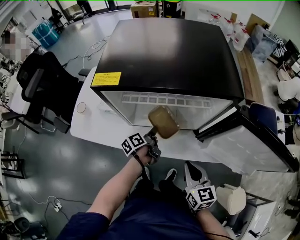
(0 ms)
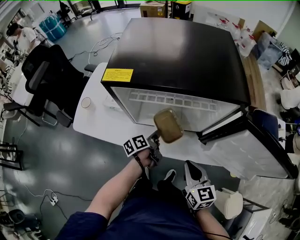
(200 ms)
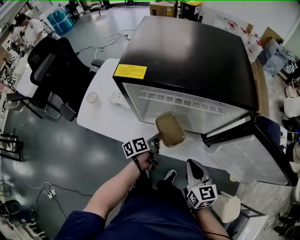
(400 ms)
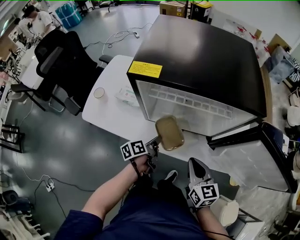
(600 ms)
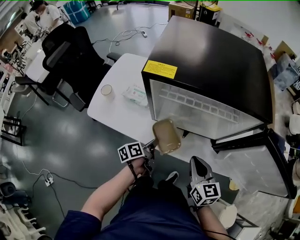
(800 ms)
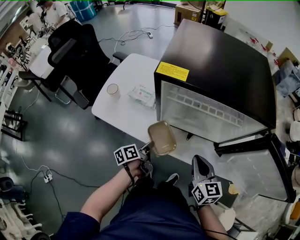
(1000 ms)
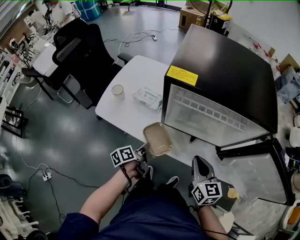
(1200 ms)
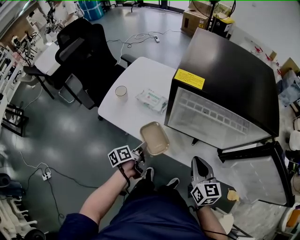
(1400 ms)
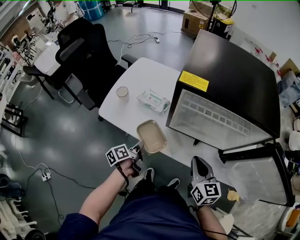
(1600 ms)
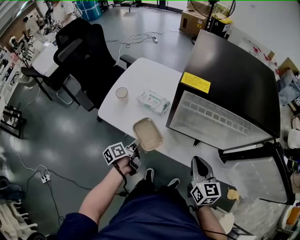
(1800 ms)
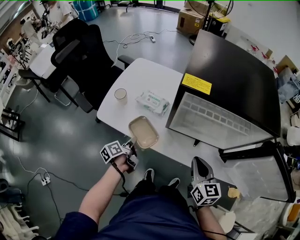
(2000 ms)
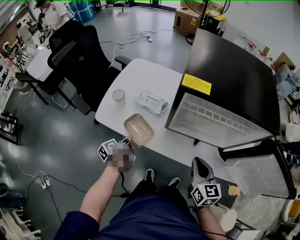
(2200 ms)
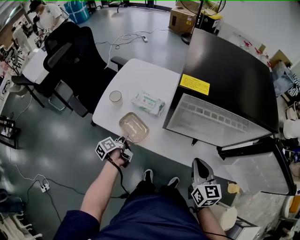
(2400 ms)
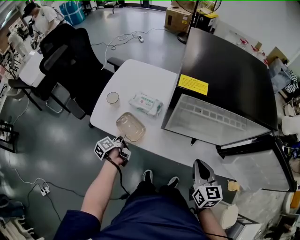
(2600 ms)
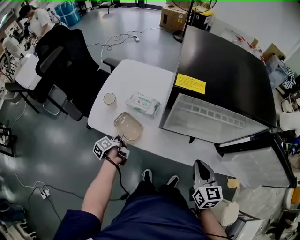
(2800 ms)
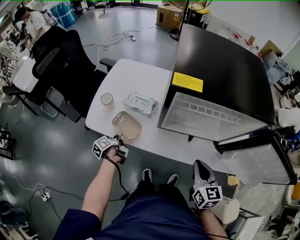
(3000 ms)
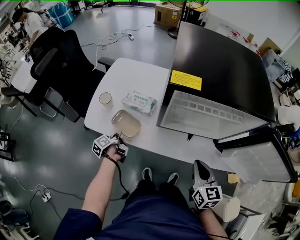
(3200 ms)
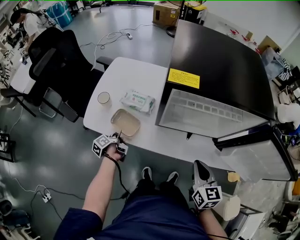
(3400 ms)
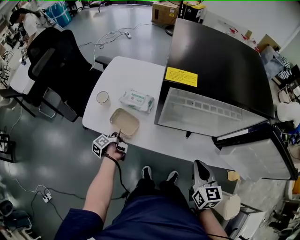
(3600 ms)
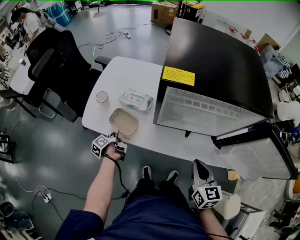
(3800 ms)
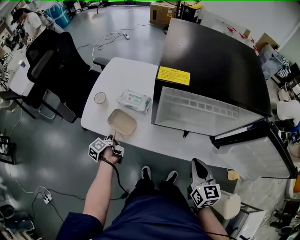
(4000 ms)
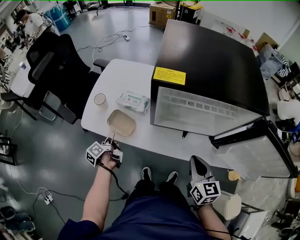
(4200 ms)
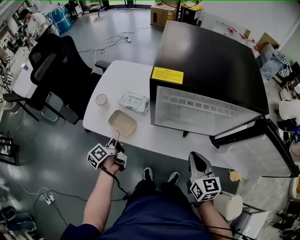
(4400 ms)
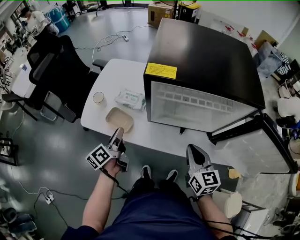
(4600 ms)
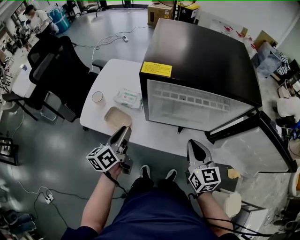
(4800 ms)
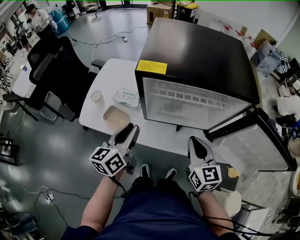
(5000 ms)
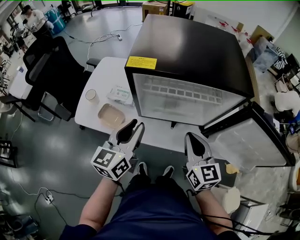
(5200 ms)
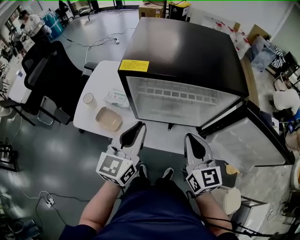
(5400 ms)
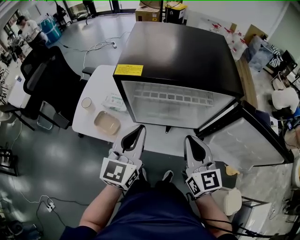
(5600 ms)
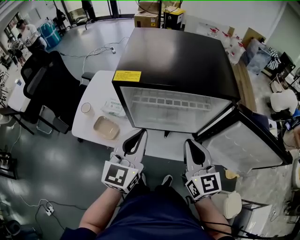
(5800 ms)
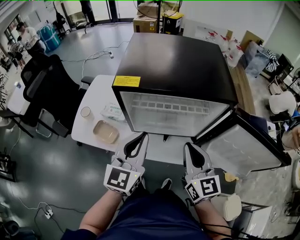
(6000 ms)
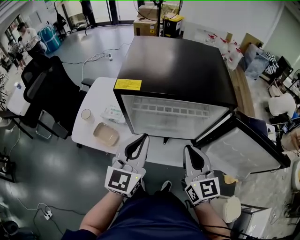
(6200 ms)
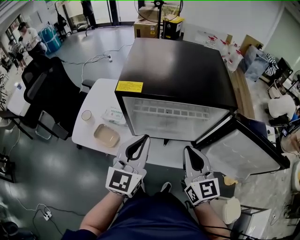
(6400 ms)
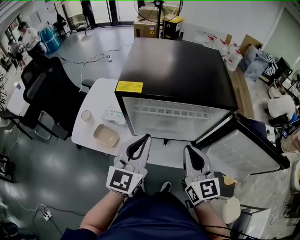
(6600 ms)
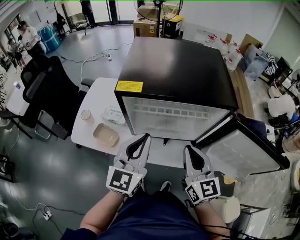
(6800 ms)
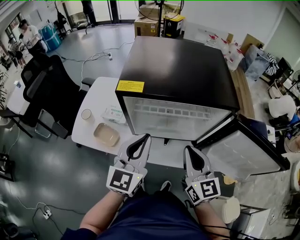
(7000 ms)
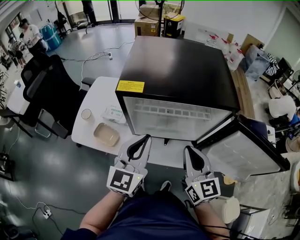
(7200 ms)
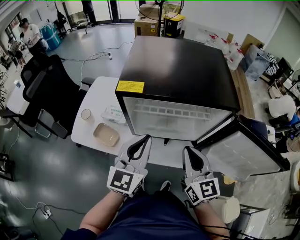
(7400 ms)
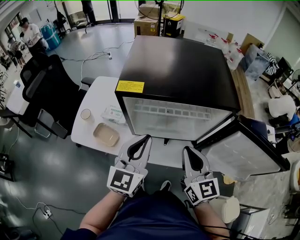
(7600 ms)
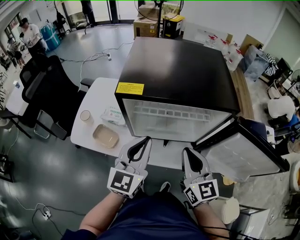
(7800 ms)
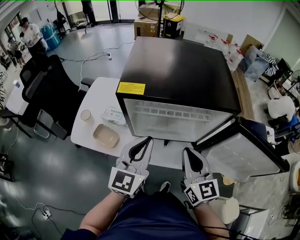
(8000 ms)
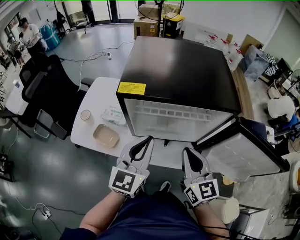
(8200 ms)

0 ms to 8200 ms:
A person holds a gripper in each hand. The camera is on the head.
0 ms to 1600 ms: The left gripper travels to the left and backward by some 25 cm, while the right gripper heads to the left and forward, covering some 15 cm.
1600 ms to 3200 ms: The left gripper is displaced to the left, forward and downward by approximately 15 cm.
3200 ms to 5000 ms: The left gripper shifts roughly 35 cm upward and to the right, and twists some 50 degrees clockwise, seen from behind. Meanwhile the right gripper travels upward by about 5 cm.
5000 ms to 6600 ms: The left gripper moves to the right and upward, approximately 15 cm, swivels approximately 30 degrees, and closes up. The right gripper travels upward by about 10 cm.
6600 ms to 8200 ms: The grippers stay close to where they were, moving slightly.

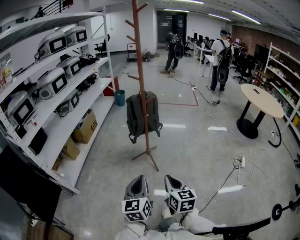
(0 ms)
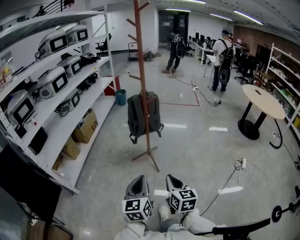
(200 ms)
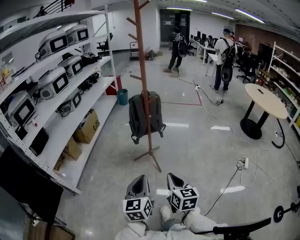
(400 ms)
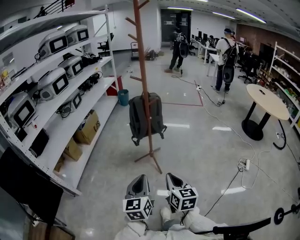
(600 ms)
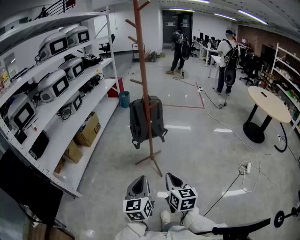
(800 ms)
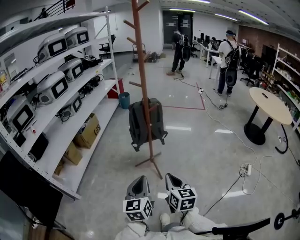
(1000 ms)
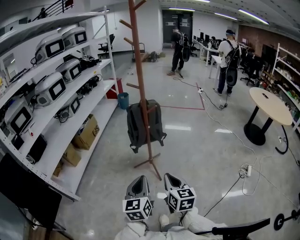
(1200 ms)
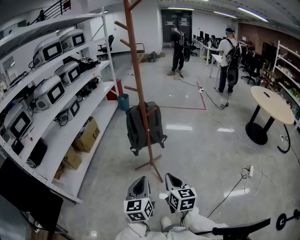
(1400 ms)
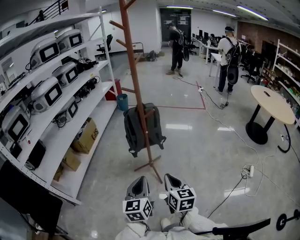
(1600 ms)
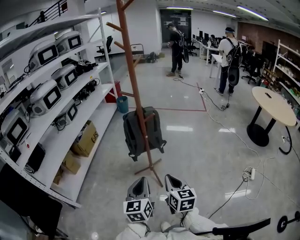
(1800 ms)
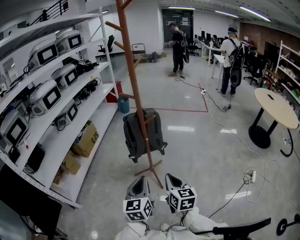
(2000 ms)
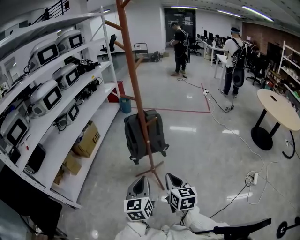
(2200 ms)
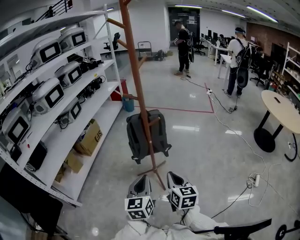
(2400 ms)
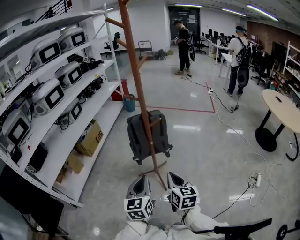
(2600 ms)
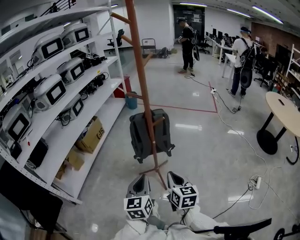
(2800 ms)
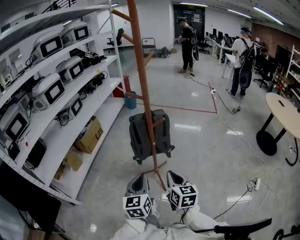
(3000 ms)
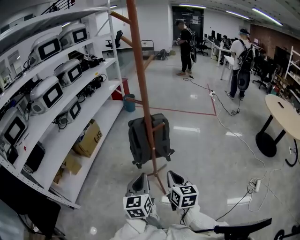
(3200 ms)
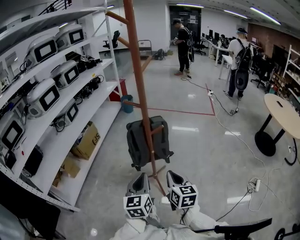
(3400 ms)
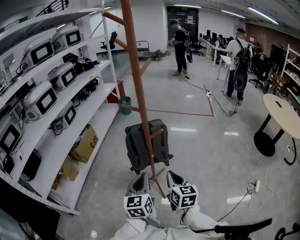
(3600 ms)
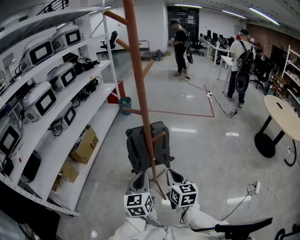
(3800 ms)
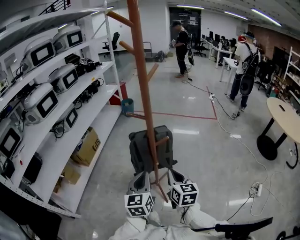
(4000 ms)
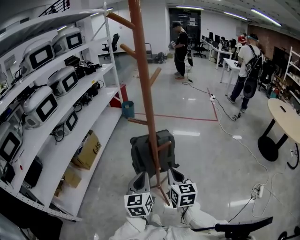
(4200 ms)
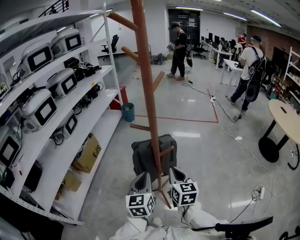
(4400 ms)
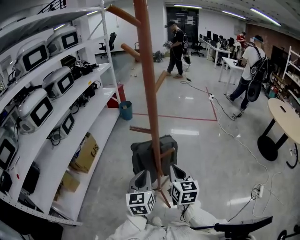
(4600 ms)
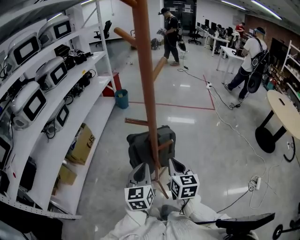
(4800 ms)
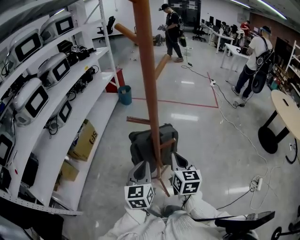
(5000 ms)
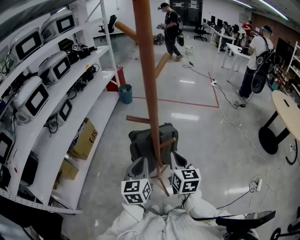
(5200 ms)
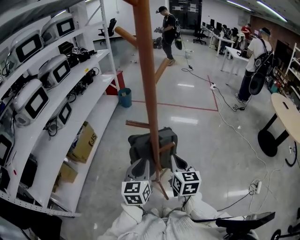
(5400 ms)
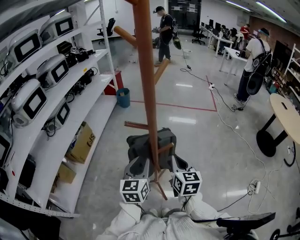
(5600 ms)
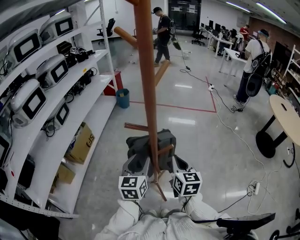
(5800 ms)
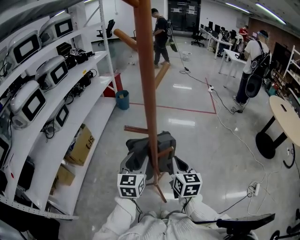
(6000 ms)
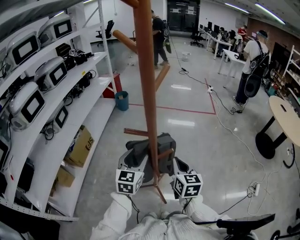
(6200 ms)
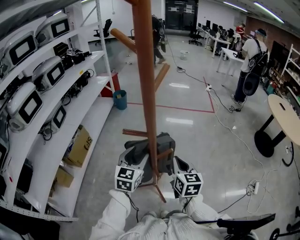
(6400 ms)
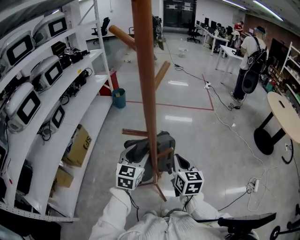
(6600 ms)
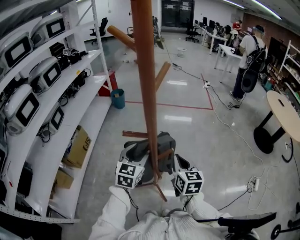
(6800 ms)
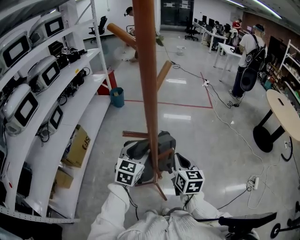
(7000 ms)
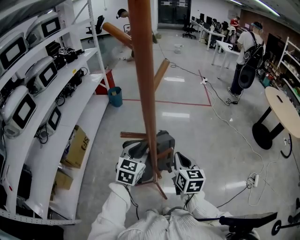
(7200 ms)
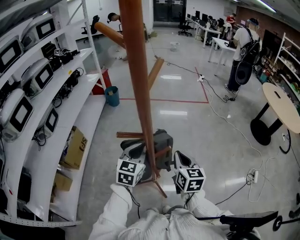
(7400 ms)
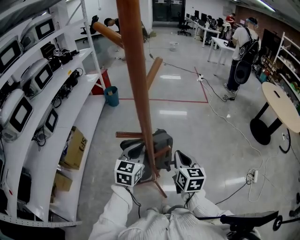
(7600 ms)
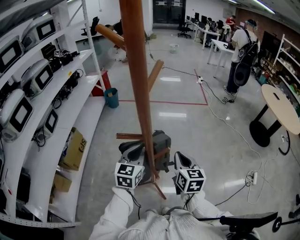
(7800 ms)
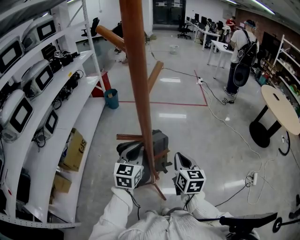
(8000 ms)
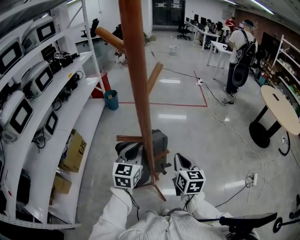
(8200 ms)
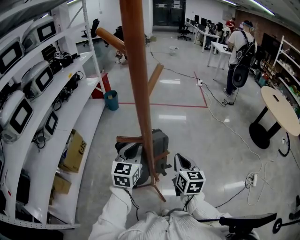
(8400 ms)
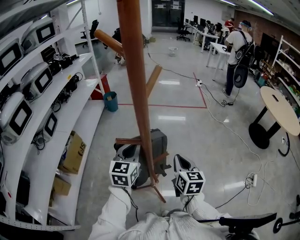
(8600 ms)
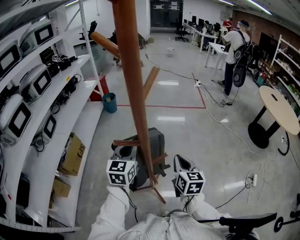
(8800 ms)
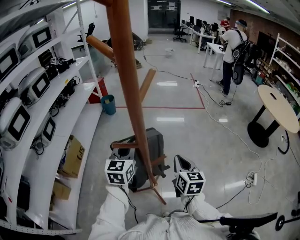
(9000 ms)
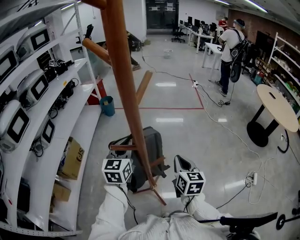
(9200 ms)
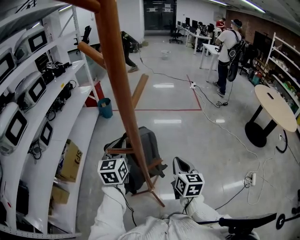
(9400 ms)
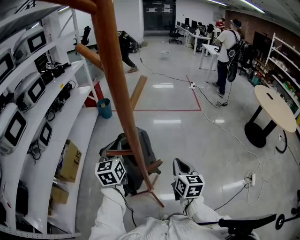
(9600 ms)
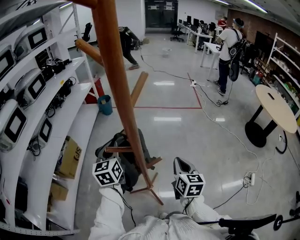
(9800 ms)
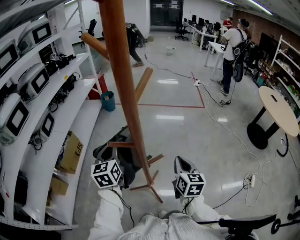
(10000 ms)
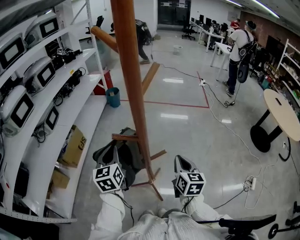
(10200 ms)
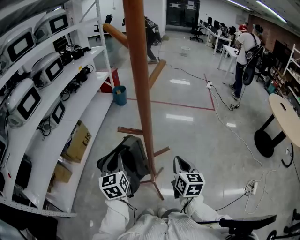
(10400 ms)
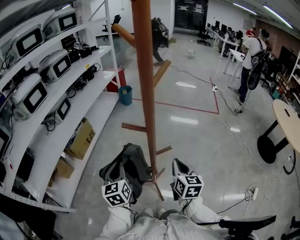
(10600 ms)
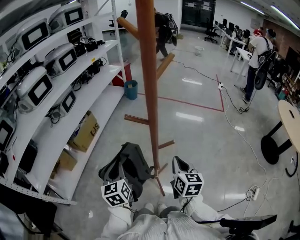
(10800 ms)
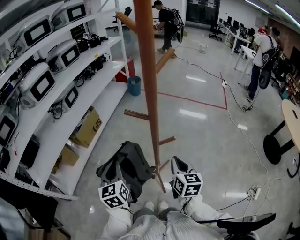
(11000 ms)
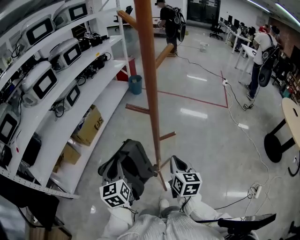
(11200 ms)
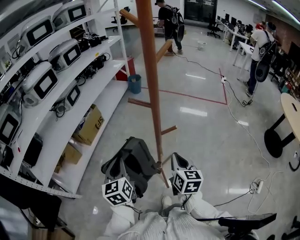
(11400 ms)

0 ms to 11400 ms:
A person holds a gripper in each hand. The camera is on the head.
0 ms to 1400 ms: The grippers both shift forward by about 15 cm.
1400 ms to 2800 ms: Both grippers travel together forward, about 15 cm.
2800 ms to 4200 ms: The two grippers go some 15 cm forward.
4200 ms to 5600 ms: Both grippers travel together forward, approximately 10 cm.
5600 ms to 7200 ms: The left gripper heads forward, covering about 10 cm, and rotates roughly 30 degrees.
7200 ms to 8600 ms: The left gripper moves roughly 5 cm, and closes.
8600 ms to 10000 ms: The left gripper shifts approximately 10 cm to the left, and changes its angle by roughly 20 degrees.
10000 ms to 11400 ms: The right gripper shifts approximately 10 cm to the left and backward. The left gripper moves backward, some 20 cm.

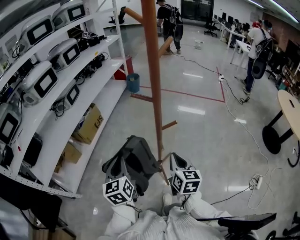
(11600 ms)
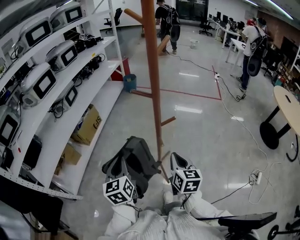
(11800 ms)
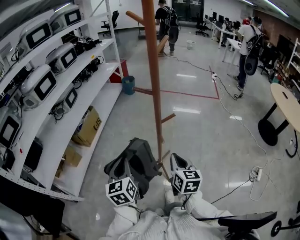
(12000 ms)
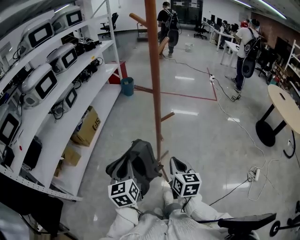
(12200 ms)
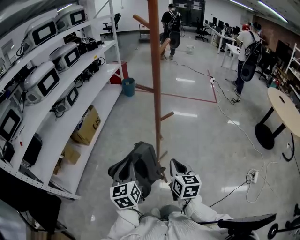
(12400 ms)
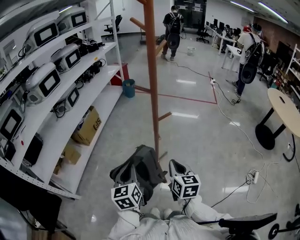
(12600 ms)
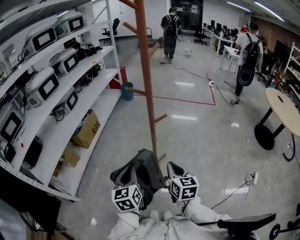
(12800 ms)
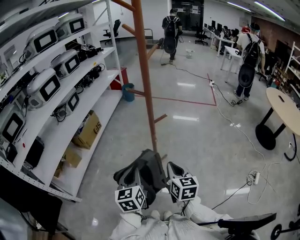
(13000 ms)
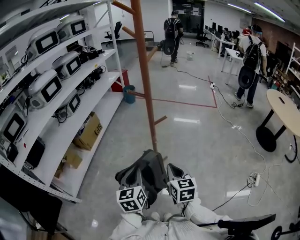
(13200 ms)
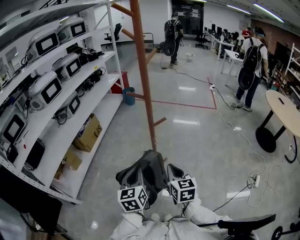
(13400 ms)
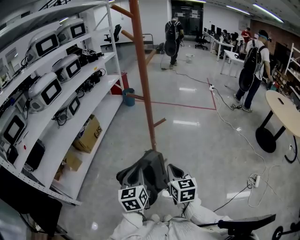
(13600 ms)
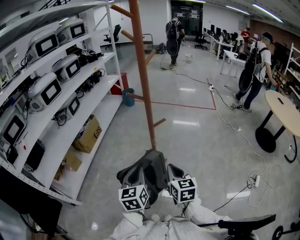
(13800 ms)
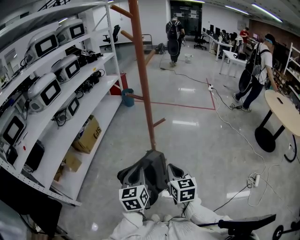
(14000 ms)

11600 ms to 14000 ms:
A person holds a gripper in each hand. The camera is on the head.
11600 ms to 12800 ms: Both grippers travel together backward, some 10 cm.
12800 ms to 14000 ms: There are only small adjustments of the grippers.

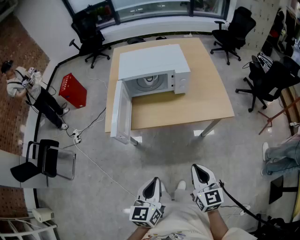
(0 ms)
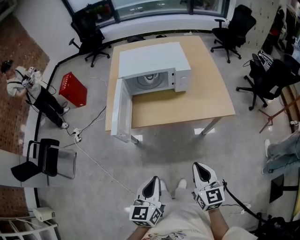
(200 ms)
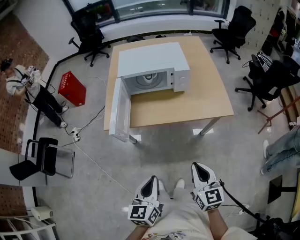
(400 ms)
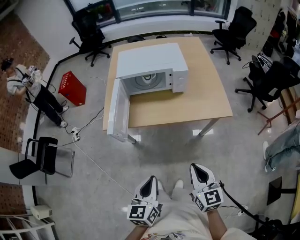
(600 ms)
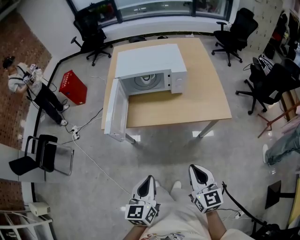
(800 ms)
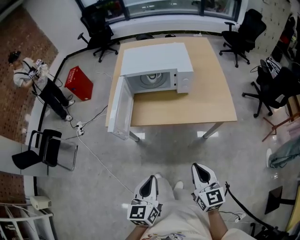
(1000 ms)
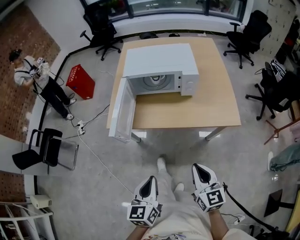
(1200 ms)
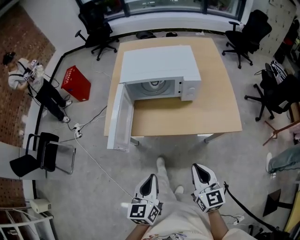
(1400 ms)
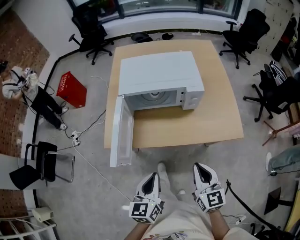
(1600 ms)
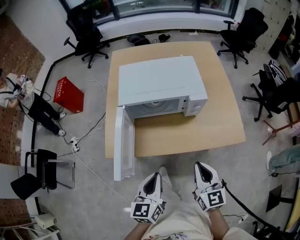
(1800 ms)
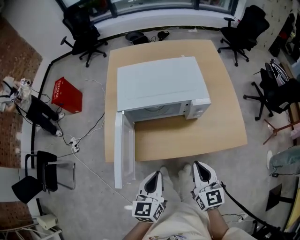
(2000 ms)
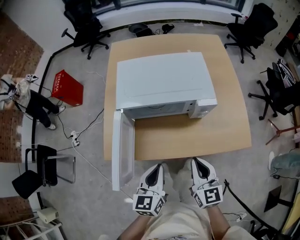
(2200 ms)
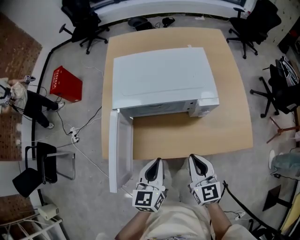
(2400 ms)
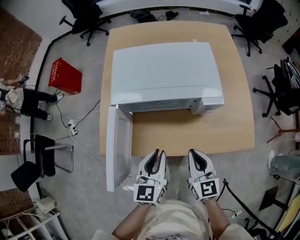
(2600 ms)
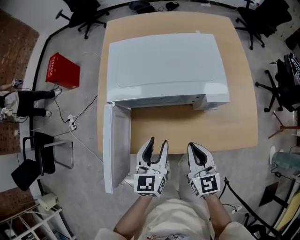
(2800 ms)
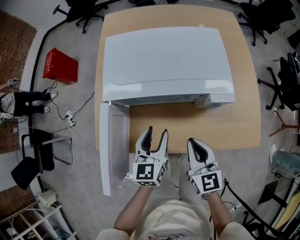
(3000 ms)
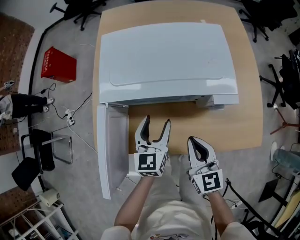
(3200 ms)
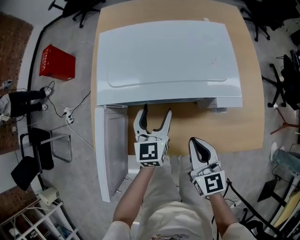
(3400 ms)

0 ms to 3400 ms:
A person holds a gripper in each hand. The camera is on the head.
0 ms to 1600 ms: The grippers both shift forward by about 20 cm.
1600 ms to 3400 ms: The right gripper travels forward and downward by about 25 cm. The left gripper is displaced forward by roughly 40 cm, and opens.
